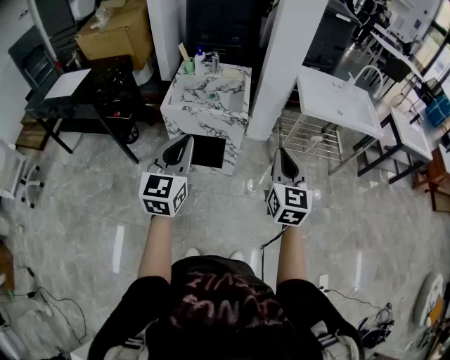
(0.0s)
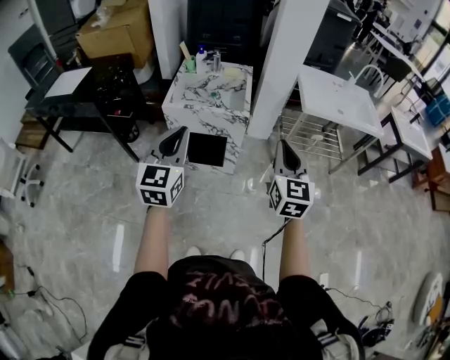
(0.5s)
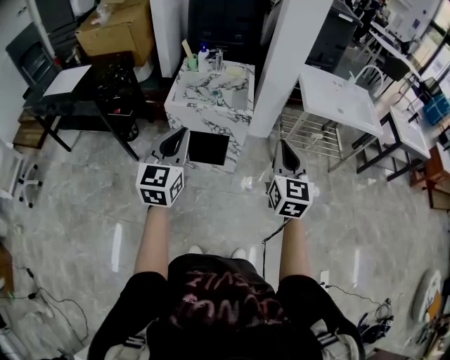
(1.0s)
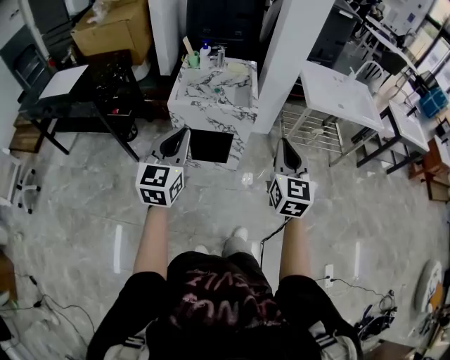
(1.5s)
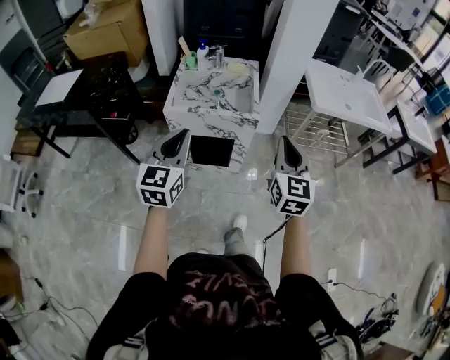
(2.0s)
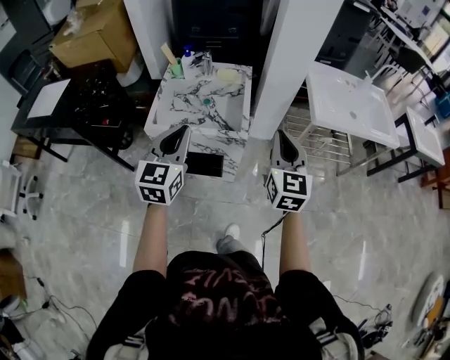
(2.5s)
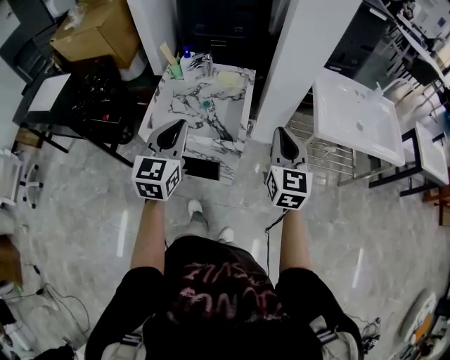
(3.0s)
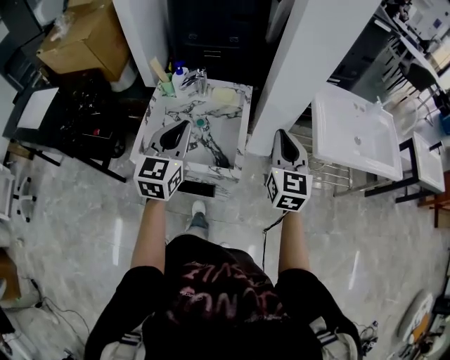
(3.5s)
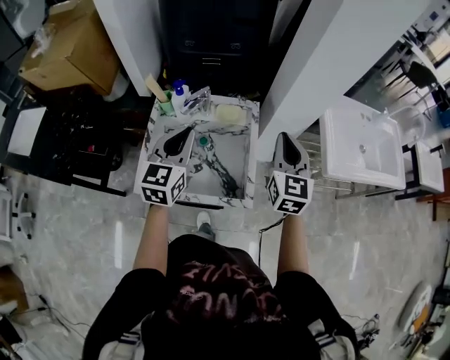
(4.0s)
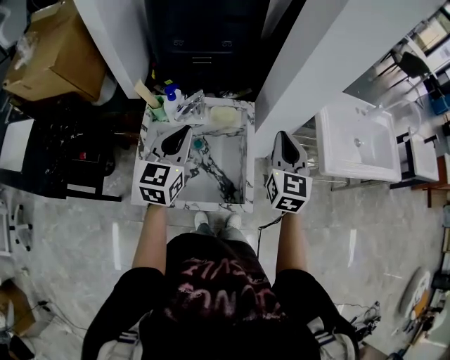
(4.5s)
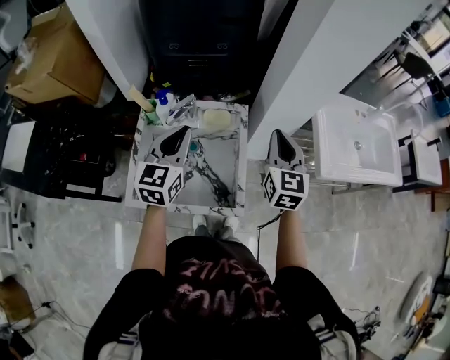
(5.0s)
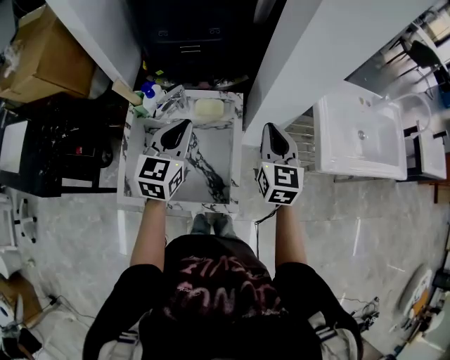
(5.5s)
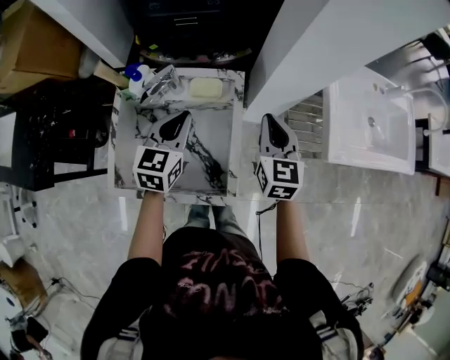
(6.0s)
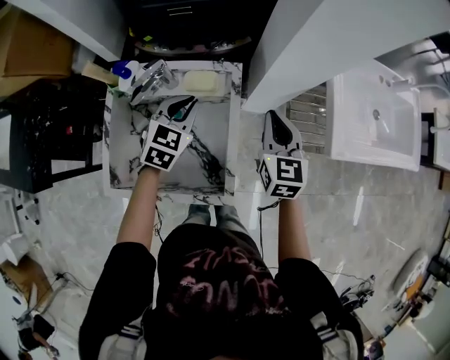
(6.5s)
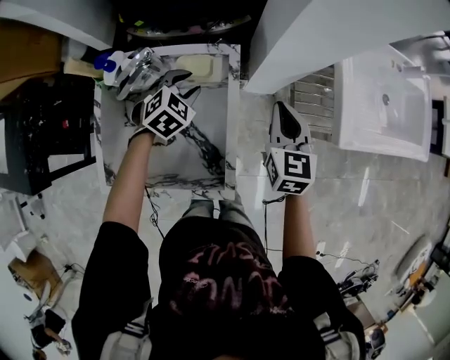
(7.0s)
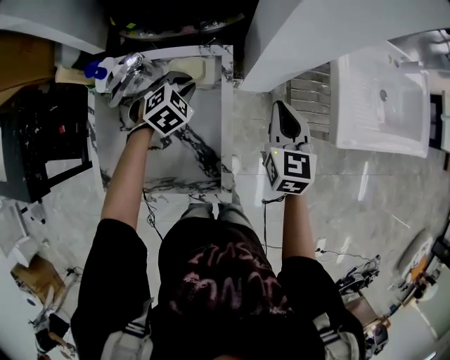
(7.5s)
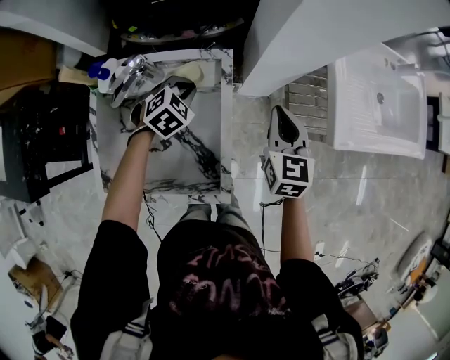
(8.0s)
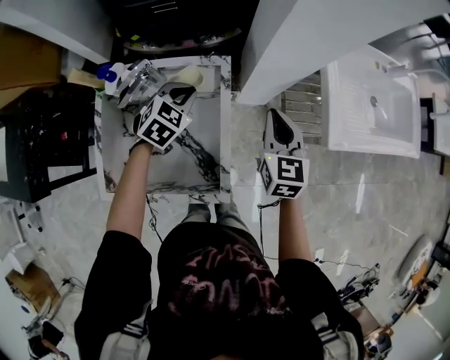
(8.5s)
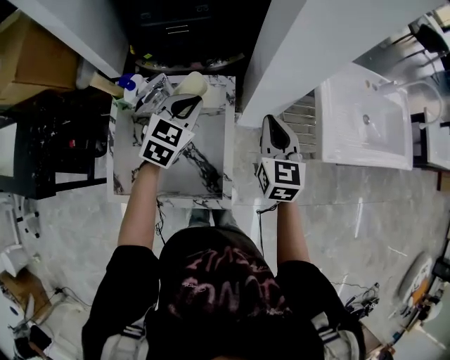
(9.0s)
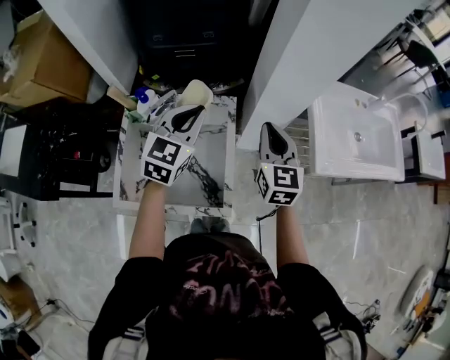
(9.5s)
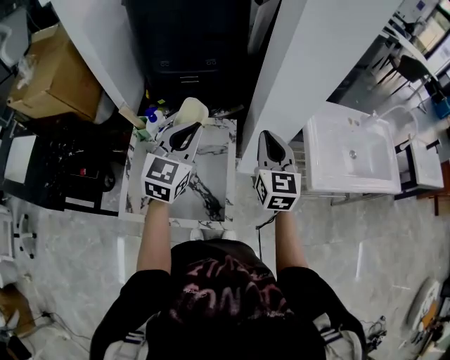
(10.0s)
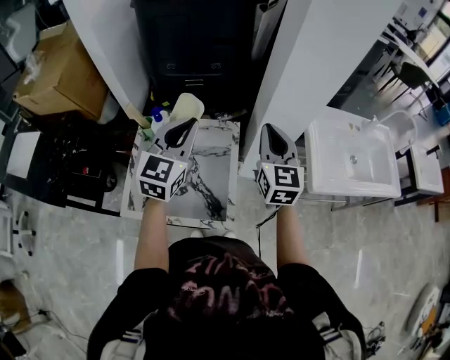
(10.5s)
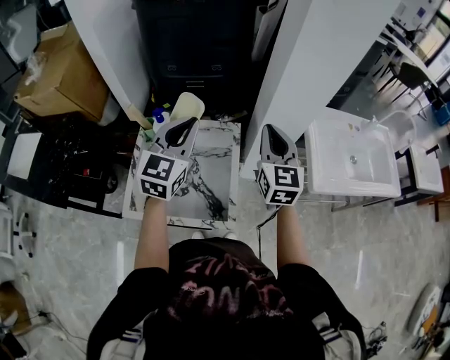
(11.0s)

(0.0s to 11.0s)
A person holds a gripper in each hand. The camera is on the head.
0.0s - 2.0s: The two grippers go some 10 cm forward and to the left.
2.0s - 3.5s: Both grippers travel together forward, approximately 35 cm.
3.5s - 5.5s: Both grippers move forward, approximately 20 cm.
5.5s - 7.5s: The right gripper shifts about 15 cm downward and to the right. The left gripper heads downward and forward, covering approximately 25 cm, angles its fingers downward, by approximately 40 degrees, and opens, then closes once more.
7.5s - 9.0s: The right gripper goes about 10 cm upward. The left gripper goes some 20 cm upward, and rotates roughly 30 degrees.
9.0s - 11.0s: The right gripper is displaced upward by roughly 15 cm. The left gripper moves upward and backward, about 20 cm, and turns by some 30 degrees.

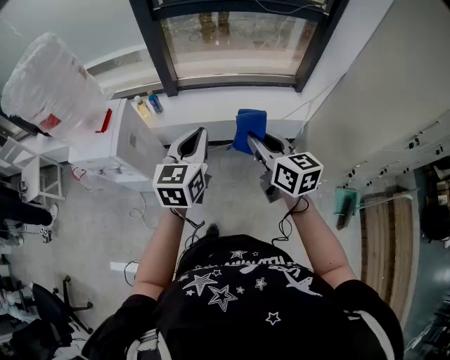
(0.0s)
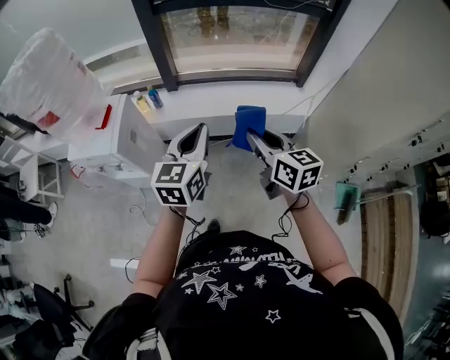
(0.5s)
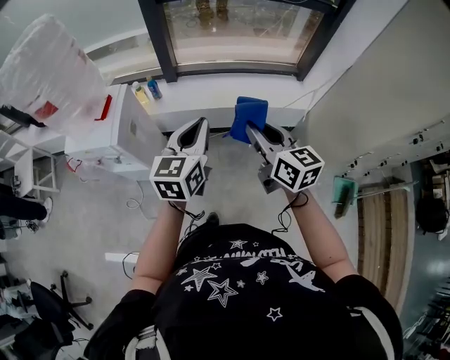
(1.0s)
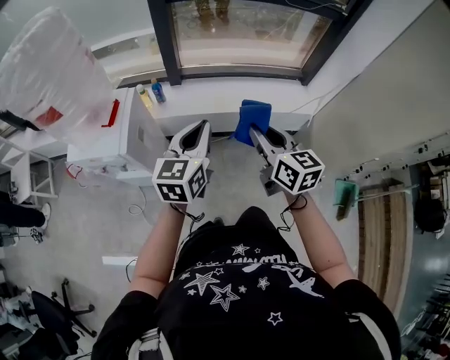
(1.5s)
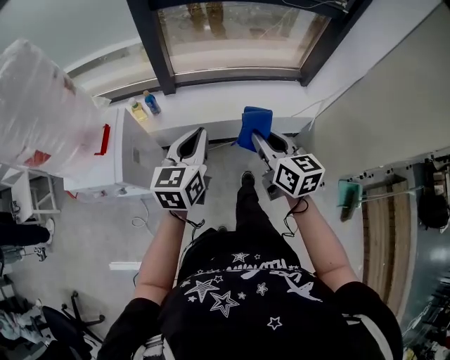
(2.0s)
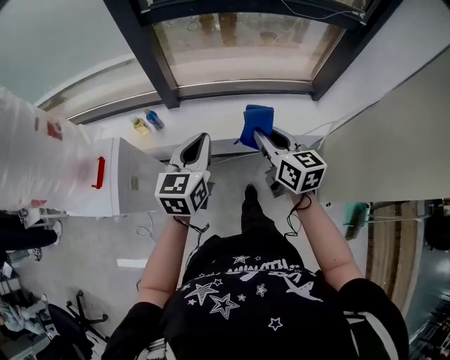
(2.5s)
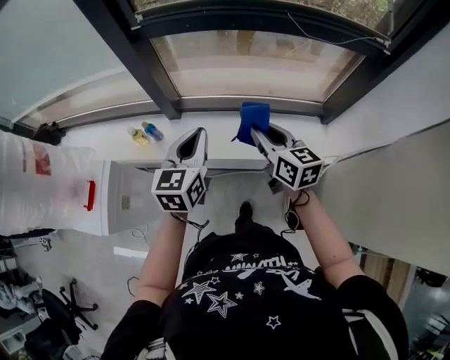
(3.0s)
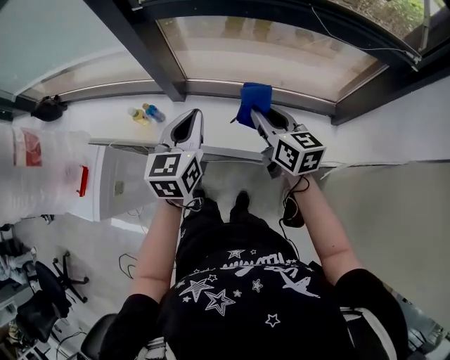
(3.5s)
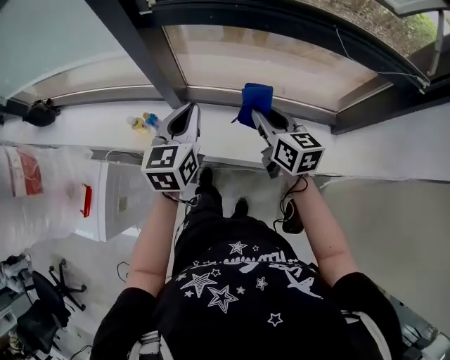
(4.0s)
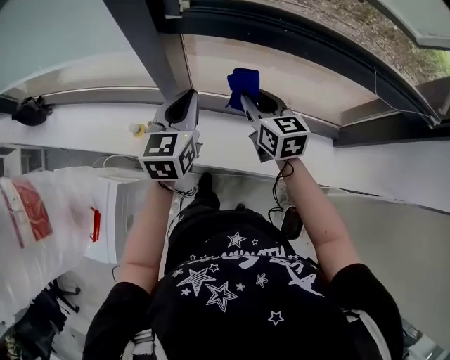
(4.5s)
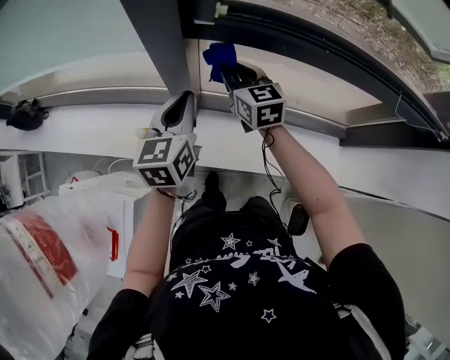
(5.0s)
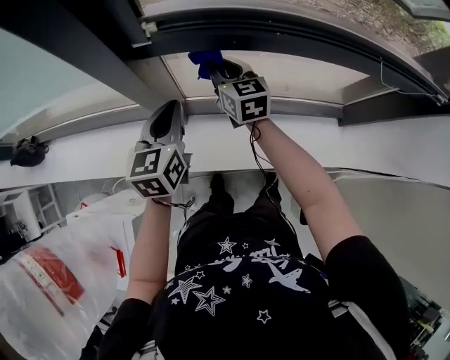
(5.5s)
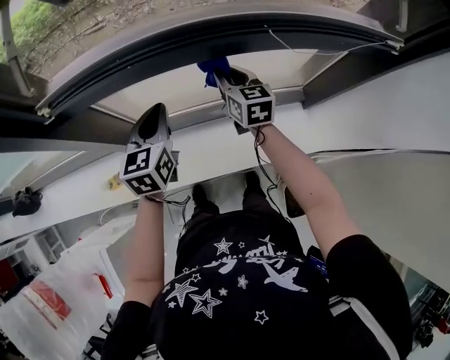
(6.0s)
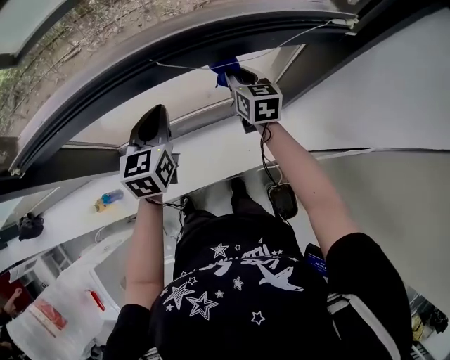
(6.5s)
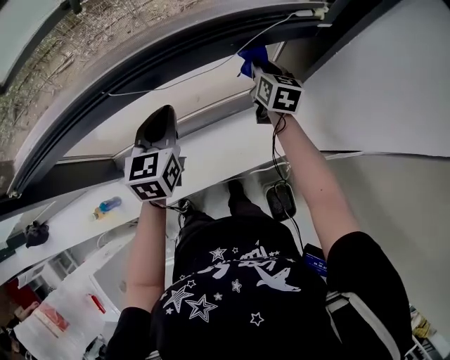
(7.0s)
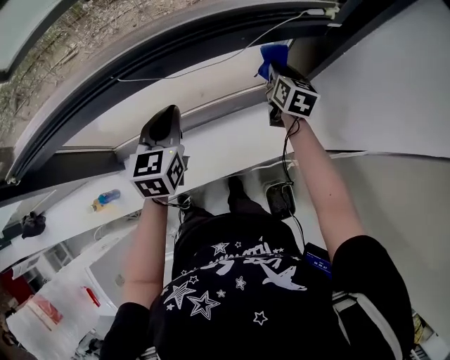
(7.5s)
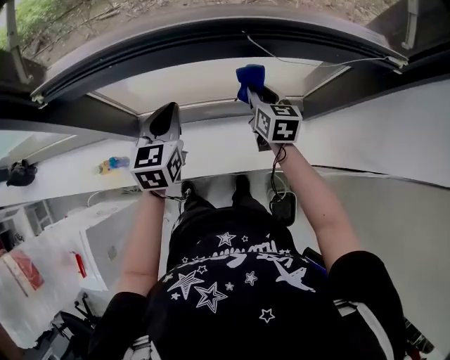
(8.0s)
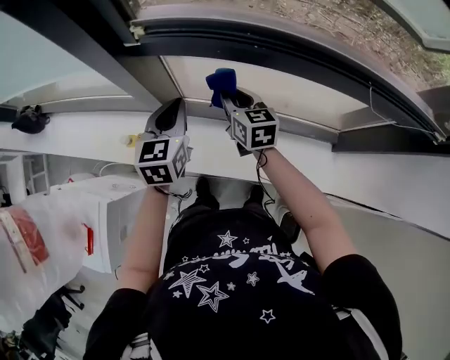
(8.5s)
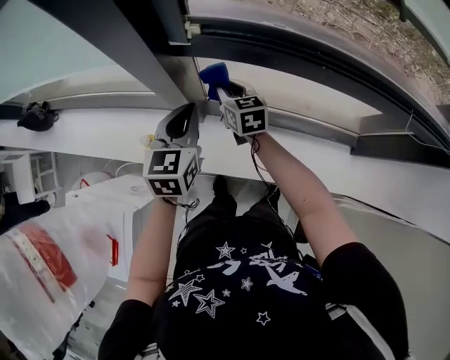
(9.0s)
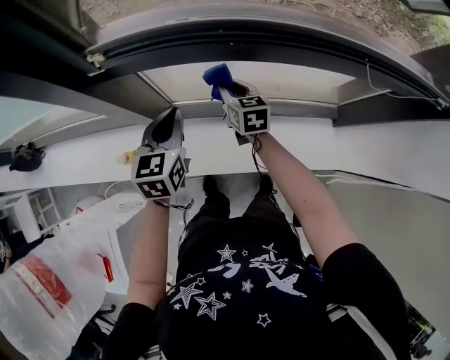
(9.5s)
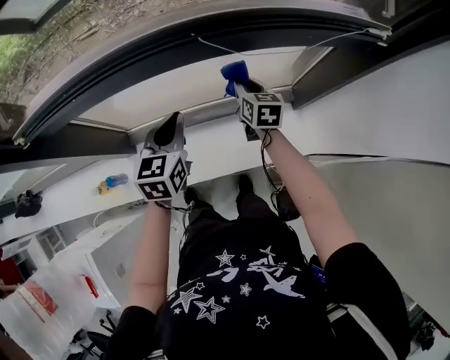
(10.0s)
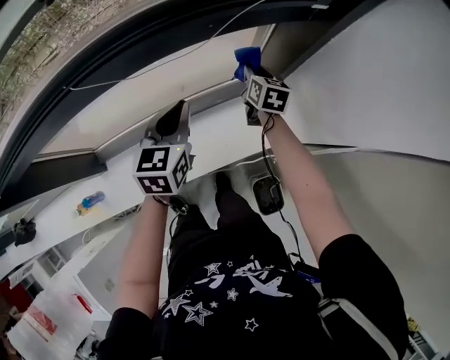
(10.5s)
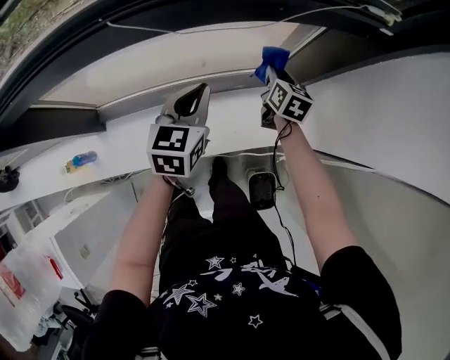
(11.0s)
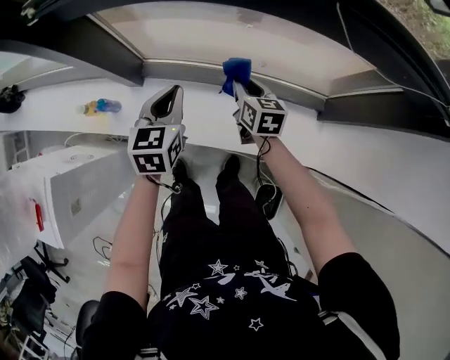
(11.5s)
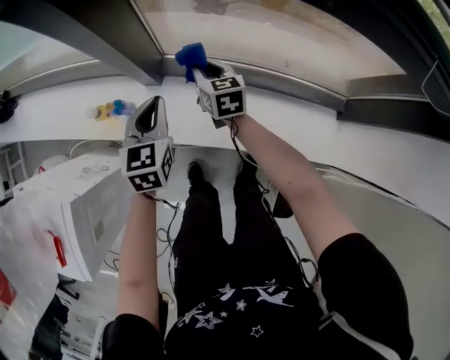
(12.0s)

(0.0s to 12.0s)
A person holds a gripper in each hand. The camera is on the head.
0.0s - 2.0s: Both grippers travel together forward and to the left, approximately 10 cm.
2.0s - 4.0s: The two grippers go roughly 35 cm forward.
4.0s - 6.0s: The two grippers go roughly 20 cm forward and to the right. The right gripper changes its angle by some 20 degrees.
6.0s - 8.0s: The right gripper moves approximately 40 cm to the right and comes back; the left gripper reaches approximately 25 cm to the right, then returns.
8.0s - 10.0s: The left gripper goes to the left and returns, about 25 cm each way. The right gripper goes to the left and returns, roughly 40 cm each way.
10.0s - 12.0s: The left gripper moves about 30 cm, and swivels about 20 degrees. The right gripper changes place by roughly 40 cm, and changes its angle by about 30 degrees.

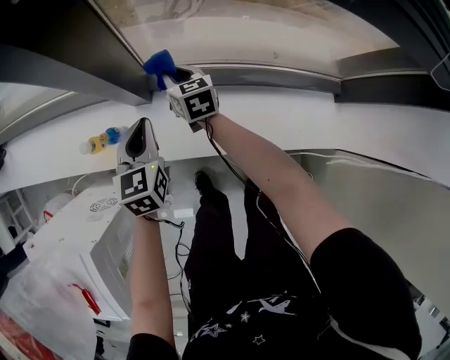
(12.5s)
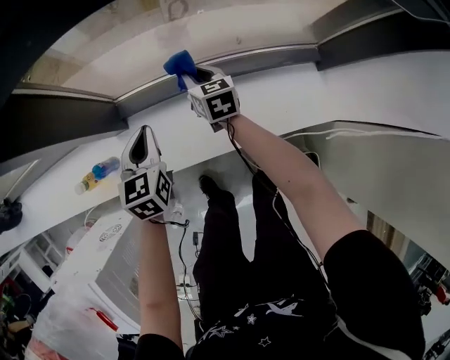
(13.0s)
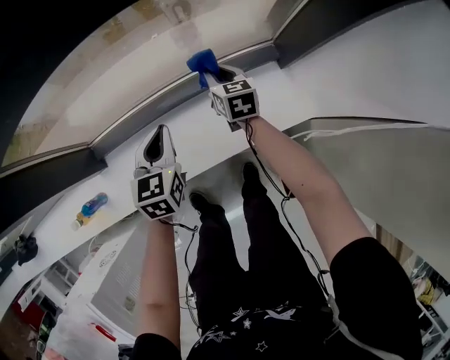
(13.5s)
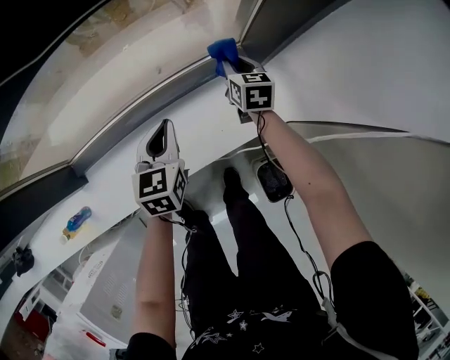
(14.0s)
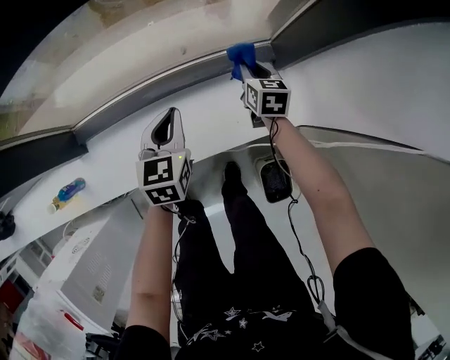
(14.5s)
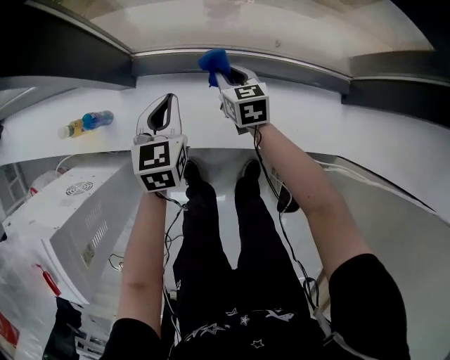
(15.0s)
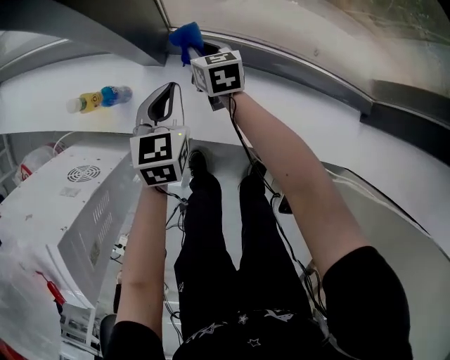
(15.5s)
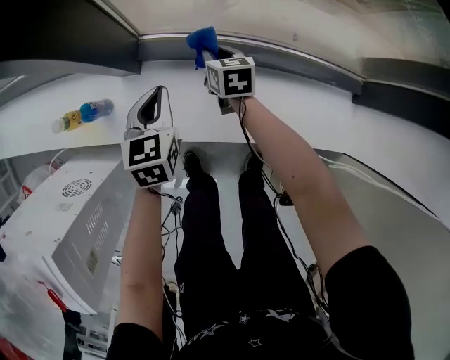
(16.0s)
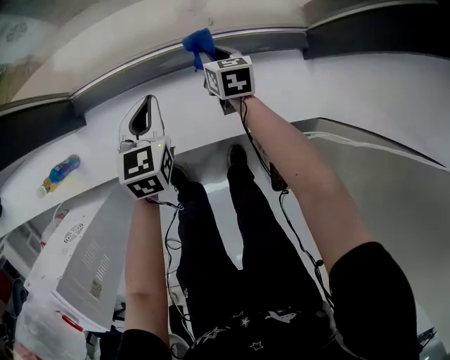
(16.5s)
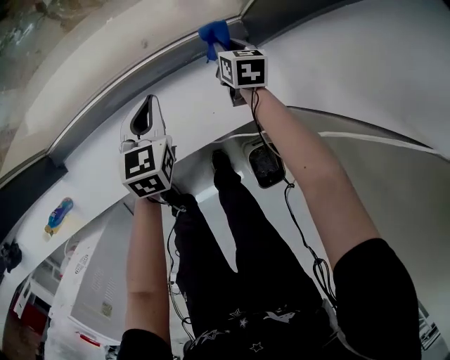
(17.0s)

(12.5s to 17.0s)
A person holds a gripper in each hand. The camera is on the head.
12.5s - 14.5s: The pair of grippers is taken about 50 cm. The right gripper rotates roughly 30 degrees. Meanwhile the left gripper swivels roughly 20 degrees.
14.5s - 17.0s: Both grippers move downward, about 5 cm.
